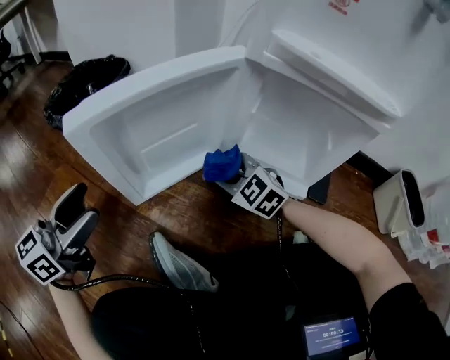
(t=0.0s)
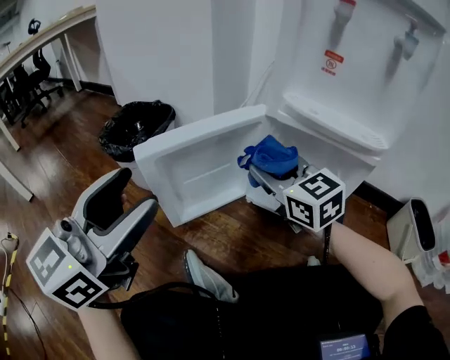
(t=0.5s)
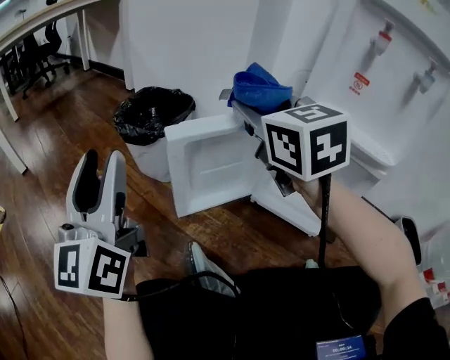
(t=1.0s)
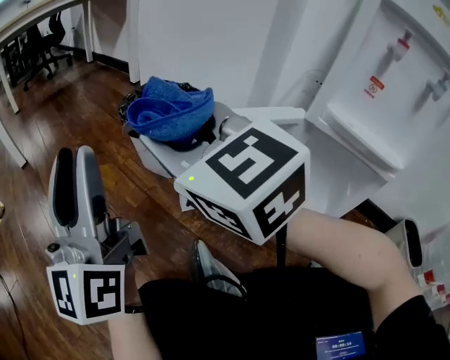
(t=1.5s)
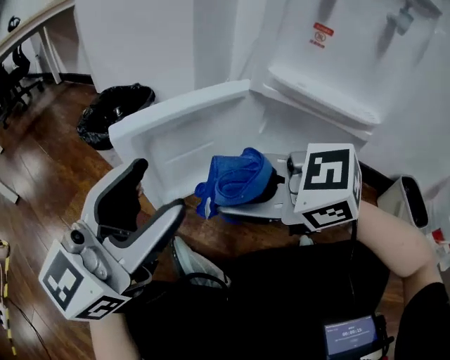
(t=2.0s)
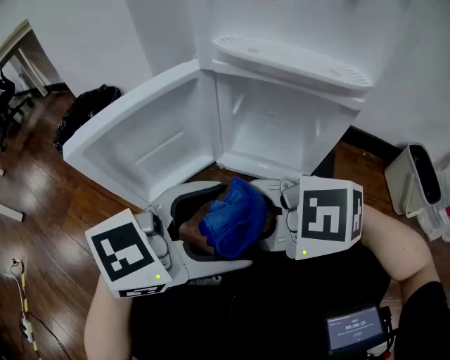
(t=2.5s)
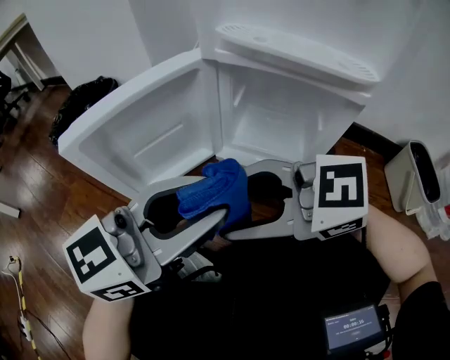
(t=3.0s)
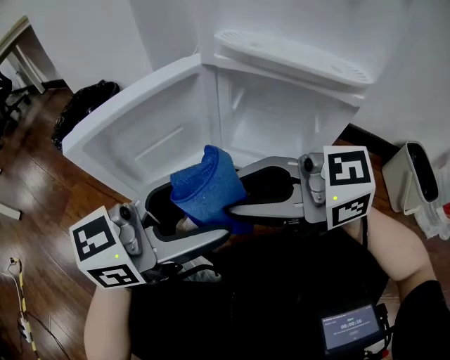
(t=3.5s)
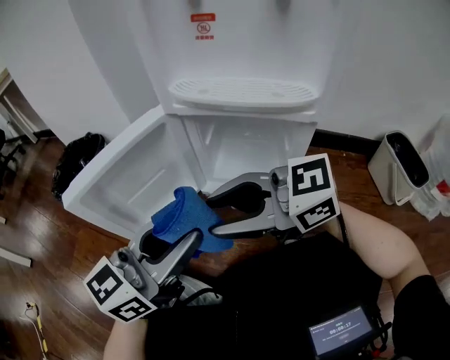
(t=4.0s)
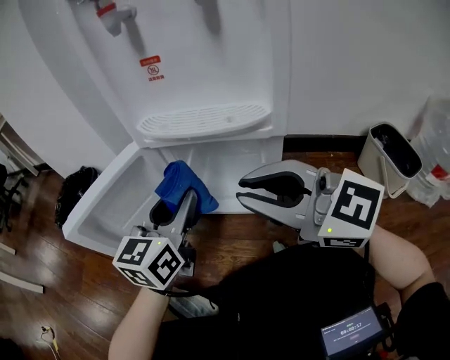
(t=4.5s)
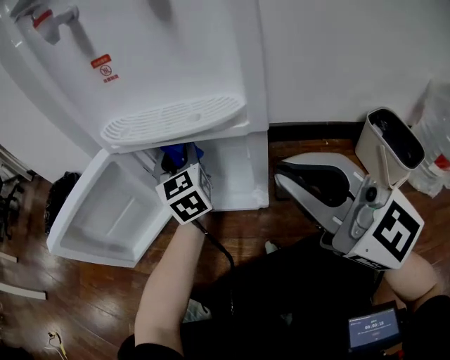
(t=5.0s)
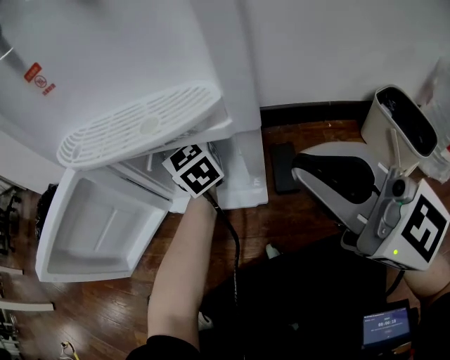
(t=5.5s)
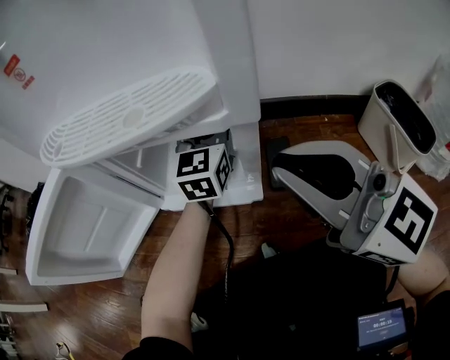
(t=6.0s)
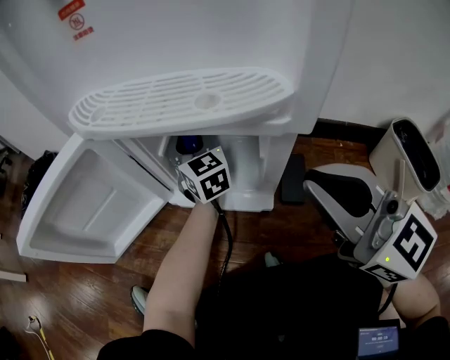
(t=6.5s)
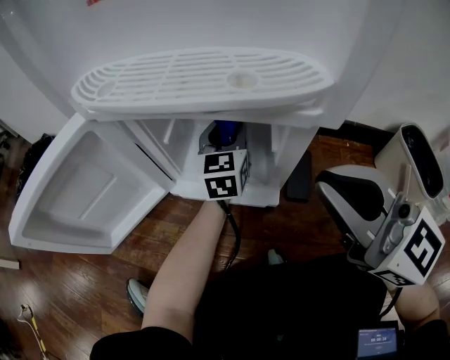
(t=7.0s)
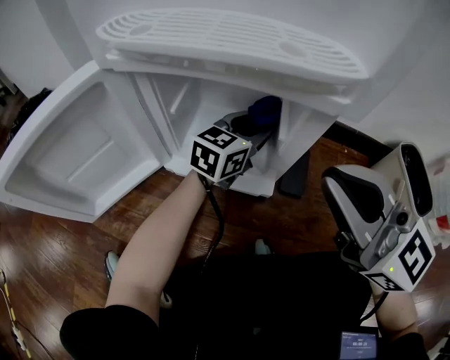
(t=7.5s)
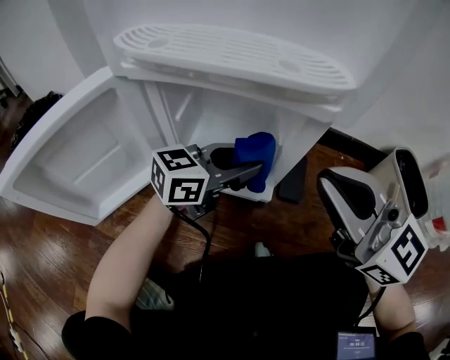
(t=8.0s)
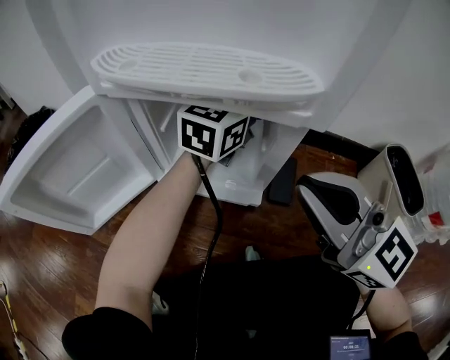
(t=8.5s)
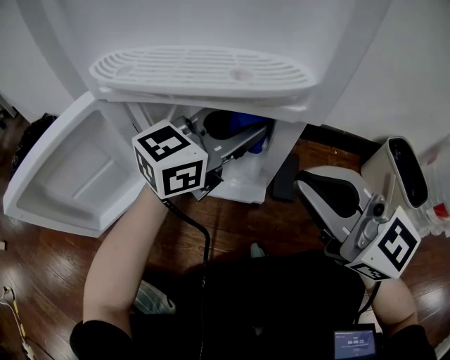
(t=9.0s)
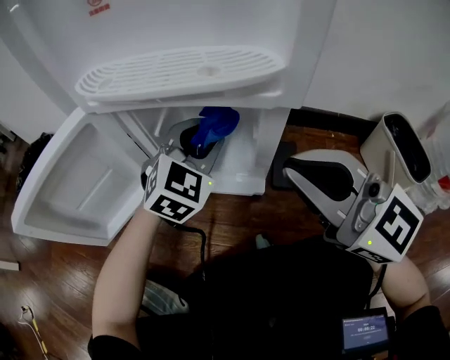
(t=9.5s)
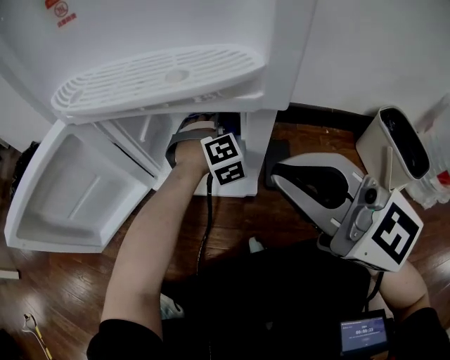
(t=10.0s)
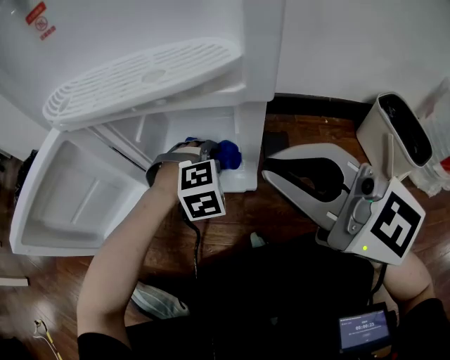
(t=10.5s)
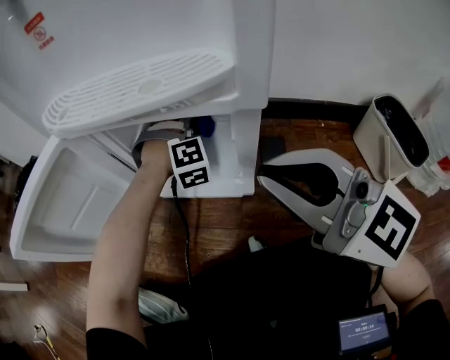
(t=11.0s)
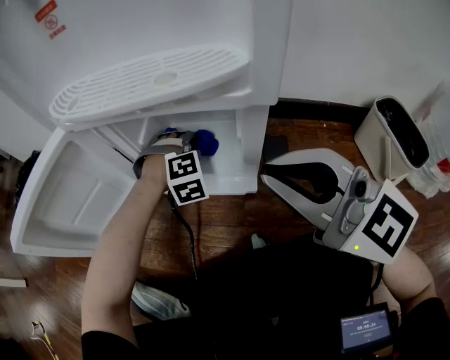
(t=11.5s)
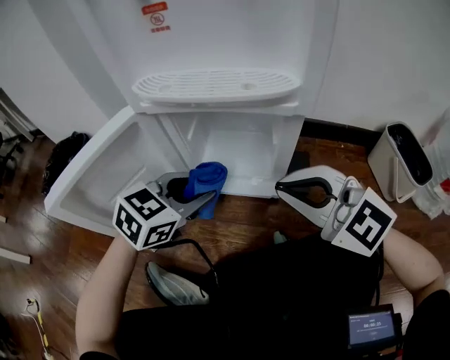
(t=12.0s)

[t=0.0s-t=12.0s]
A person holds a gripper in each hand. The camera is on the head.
t=0.0s to t=2.0s: Both grippers travel together upward, approximately 20 cm. The left gripper turns by approximately 20 degrees; the right gripper changes its angle by some 30 degrees.
t=2.0s to t=4.0s: The left gripper ends up some 15 cm from where it was, and swivels about 30 degrees. The right gripper moves some 10 cm, and changes its angle by about 20 degrees.
t=4.0s to t=6.0s: The right gripper moves approximately 25 cm, swivels roughly 50 degrees, and closes its fingers, while the left gripper moves about 40 cm, and swivels some 20 degrees.
t=6.0s to t=8.0s: The left gripper ends up some 15 cm from where it was, and swivels roughly 50 degrees.
t=8.0s to t=10.0s: The left gripper moves some 15 cm, and angles its fingers downward, by about 40 degrees.
t=10.0s to t=12.0s: The left gripper swings forward and backward, roughly 20 cm each way, with 2 reversals, and rotates around the line of its fingers by roughly 50 degrees, counterclockwise from behind, while the right gripper is displaced to the left by about 5 cm, and turns by some 20 degrees.

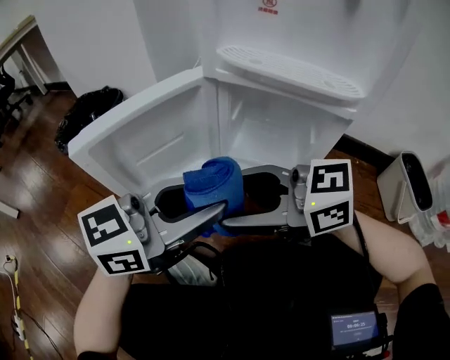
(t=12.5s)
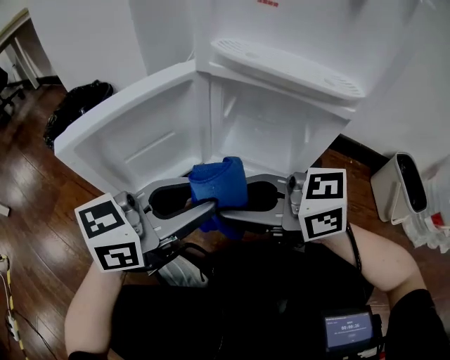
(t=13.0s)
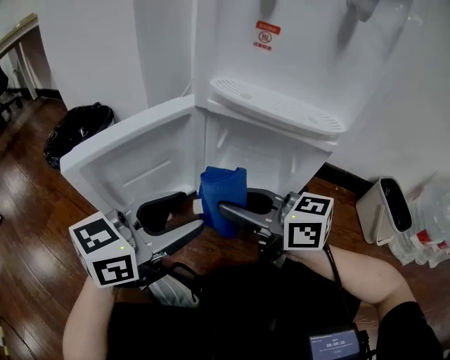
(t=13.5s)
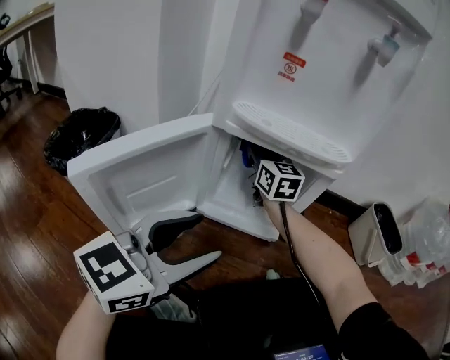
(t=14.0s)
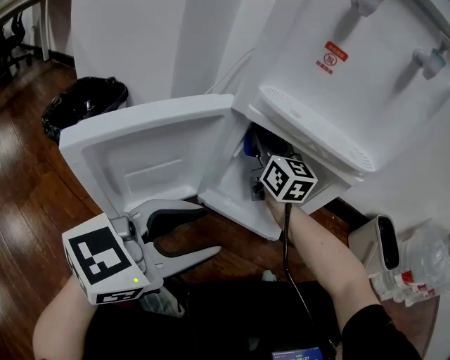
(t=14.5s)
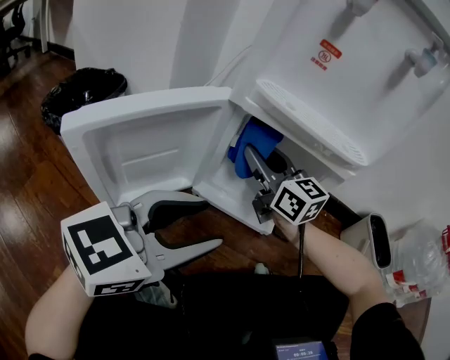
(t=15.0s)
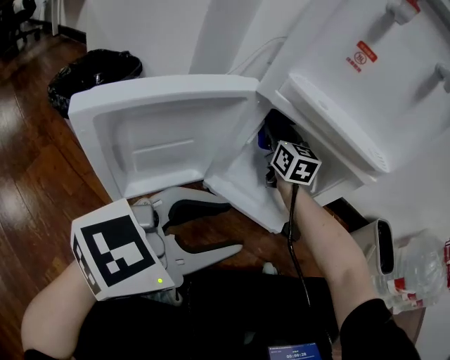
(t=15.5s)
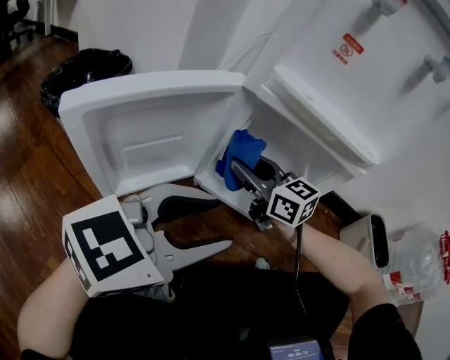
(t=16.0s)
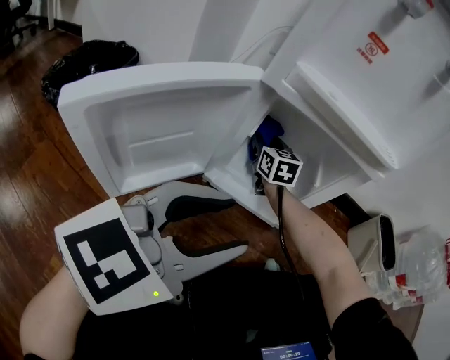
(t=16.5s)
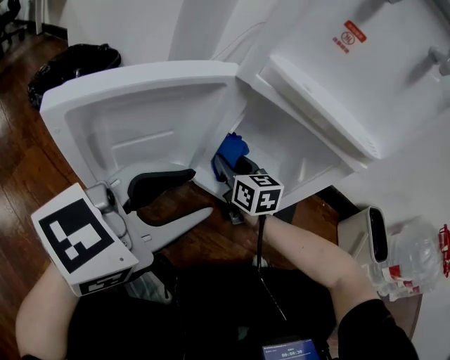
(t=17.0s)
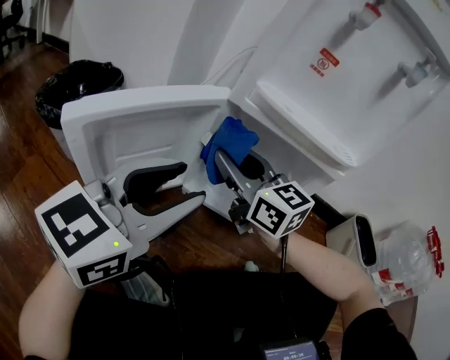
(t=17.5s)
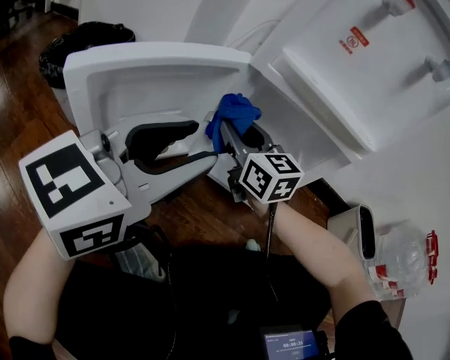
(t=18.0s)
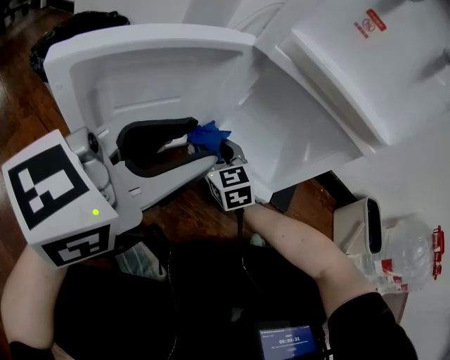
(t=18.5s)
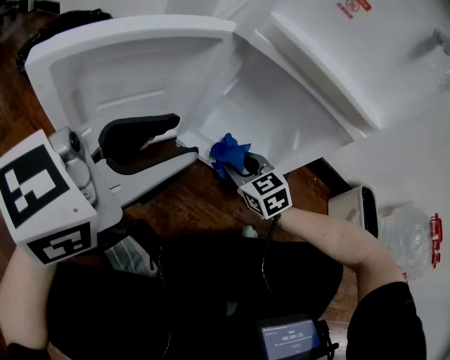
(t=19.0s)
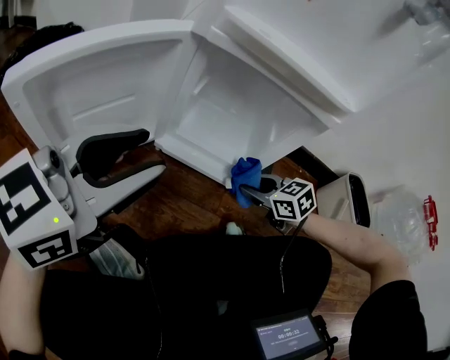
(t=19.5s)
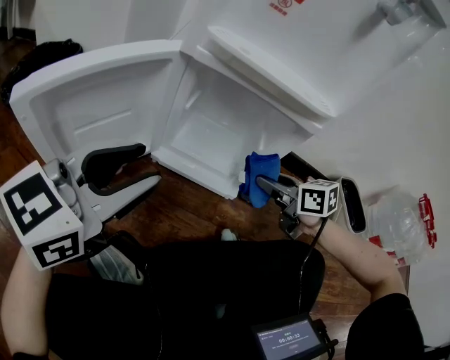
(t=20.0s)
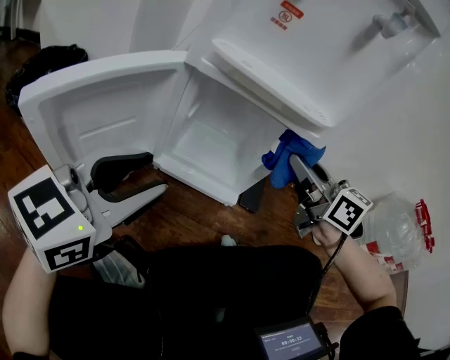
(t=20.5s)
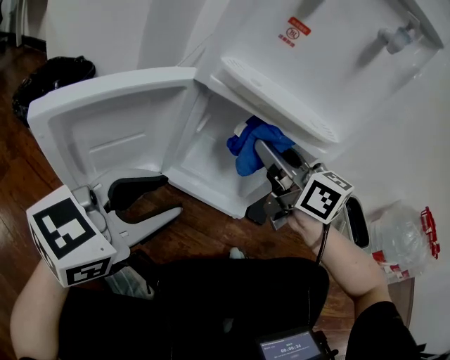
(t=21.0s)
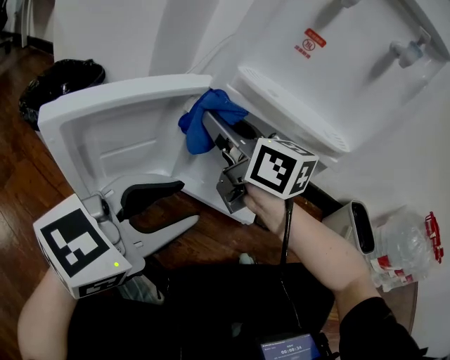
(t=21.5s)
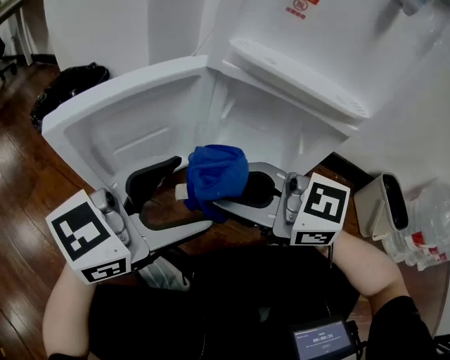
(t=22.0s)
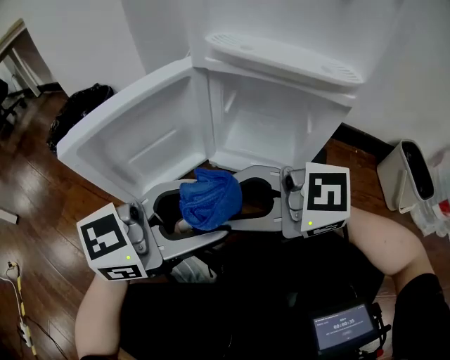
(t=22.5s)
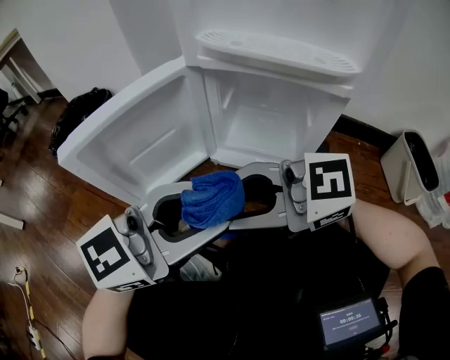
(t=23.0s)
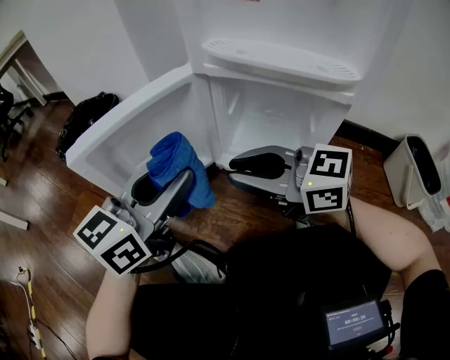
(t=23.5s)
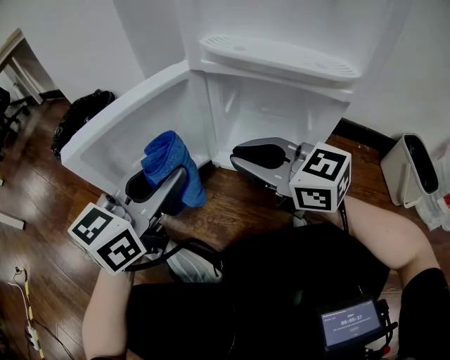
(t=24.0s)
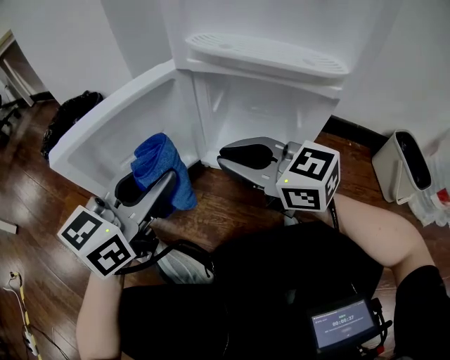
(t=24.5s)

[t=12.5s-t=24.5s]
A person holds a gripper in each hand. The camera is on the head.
t=12.5s to t=14.5s: The right gripper ends up roughly 30 cm from where it was, changes its angle by about 60 degrees, and closes.
t=14.5s to t=16.5s: The right gripper goes forward and backward, about 15 cm each way, reversing 3 times, and swivels approximately 20 degrees.
t=16.5s to t=18.5s: The right gripper heads backward and to the left, covering roughly 20 cm, moves roughly 15 cm upward and comes back, and rotates some 30 degrees, while the left gripper travels to the left by approximately 5 cm.
t=18.5s to t=20.5s: The right gripper is displaced to the right and upward by some 35 cm, and swivels approximately 30 degrees.
t=20.5s to t=22.5s: The left gripper shifts by approximately 5 cm; the right gripper moves about 30 cm, and turns by roughly 60 degrees.
t=22.5s to t=24.5s: The left gripper moves approximately 10 cm, and swivels roughly 30 degrees; the right gripper shifts by approximately 10 cm, and swivels some 30 degrees.

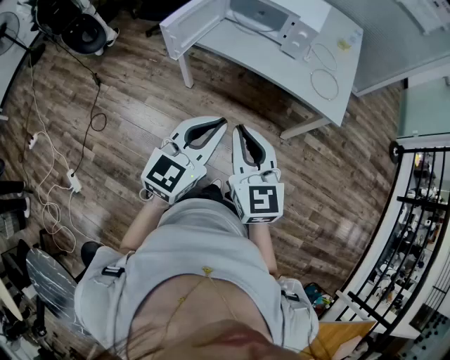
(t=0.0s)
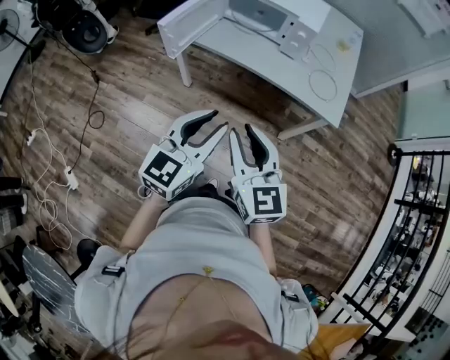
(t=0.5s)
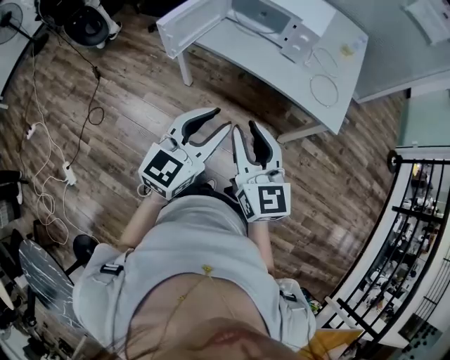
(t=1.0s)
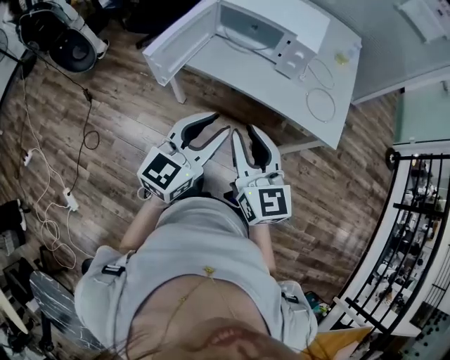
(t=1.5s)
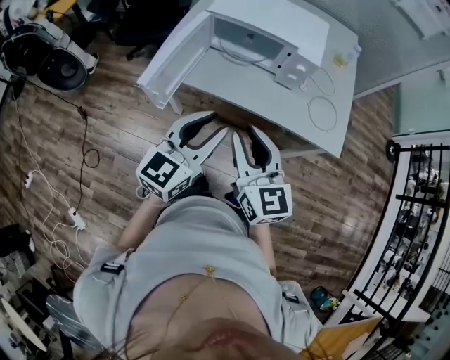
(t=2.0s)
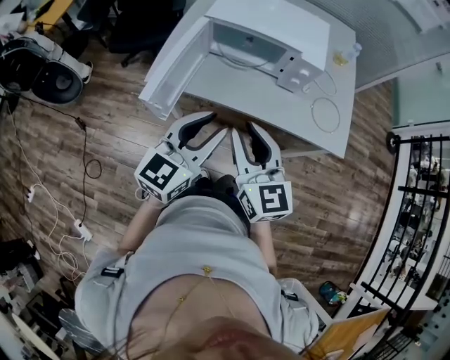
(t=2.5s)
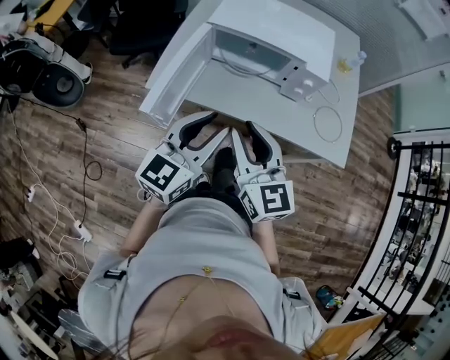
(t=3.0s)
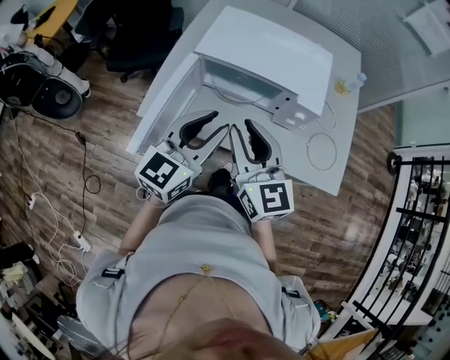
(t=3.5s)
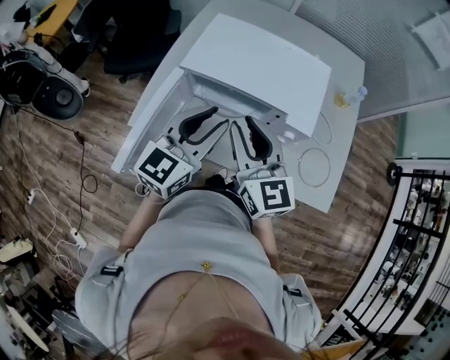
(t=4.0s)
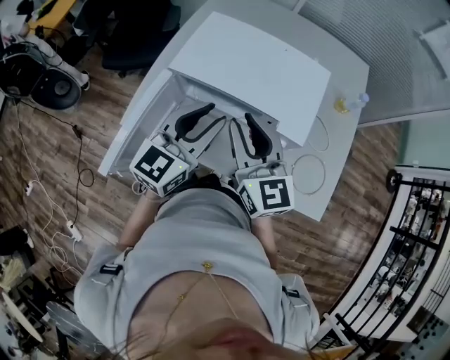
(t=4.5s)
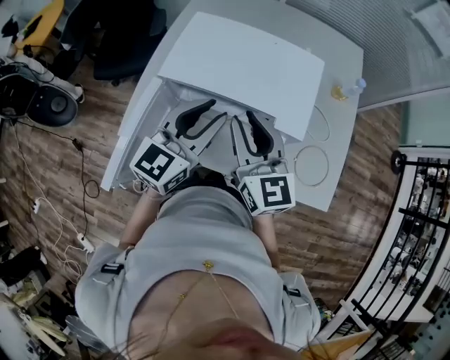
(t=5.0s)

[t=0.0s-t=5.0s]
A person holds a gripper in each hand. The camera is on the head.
t=0.0s to t=2.5s: The grippers both shift forward by about 25 cm.
t=2.5s to t=5.0s: The two grippers go approximately 30 cm forward.
